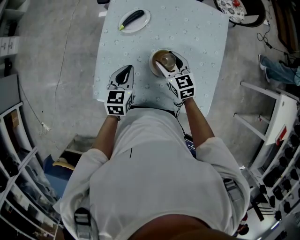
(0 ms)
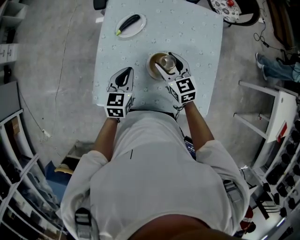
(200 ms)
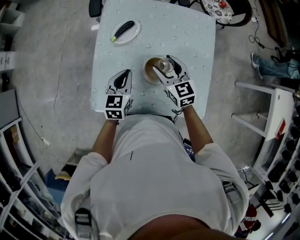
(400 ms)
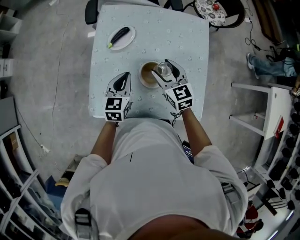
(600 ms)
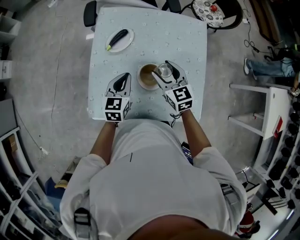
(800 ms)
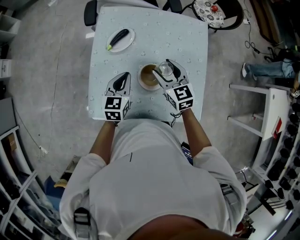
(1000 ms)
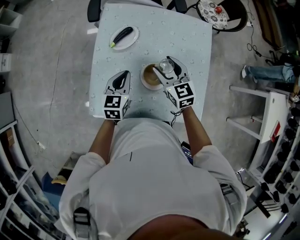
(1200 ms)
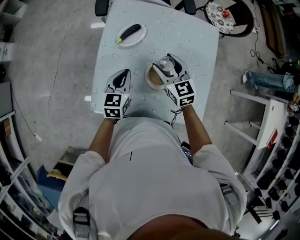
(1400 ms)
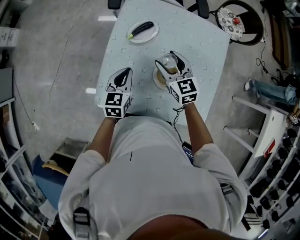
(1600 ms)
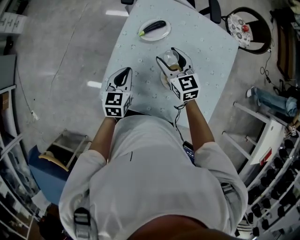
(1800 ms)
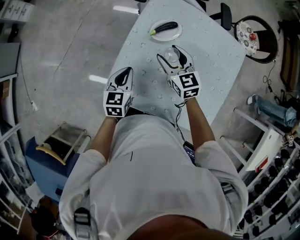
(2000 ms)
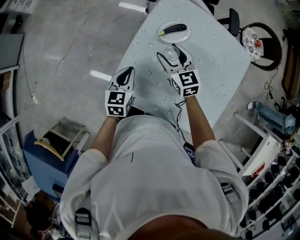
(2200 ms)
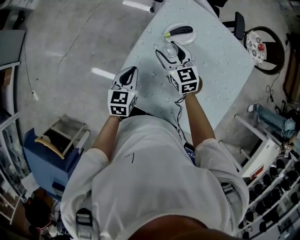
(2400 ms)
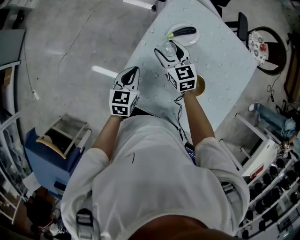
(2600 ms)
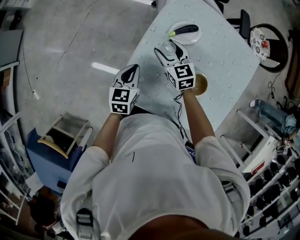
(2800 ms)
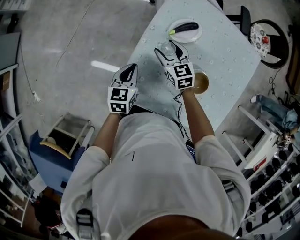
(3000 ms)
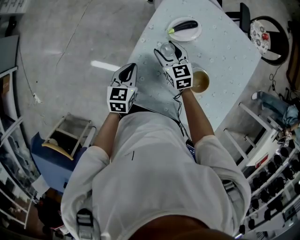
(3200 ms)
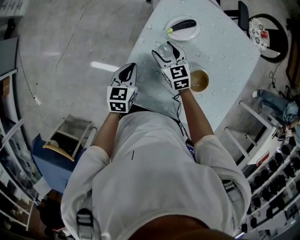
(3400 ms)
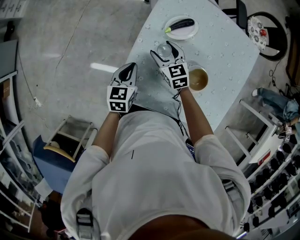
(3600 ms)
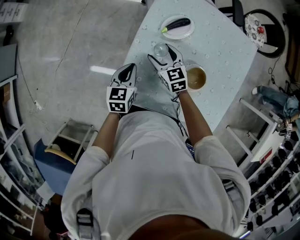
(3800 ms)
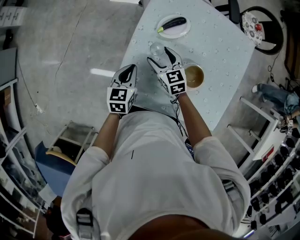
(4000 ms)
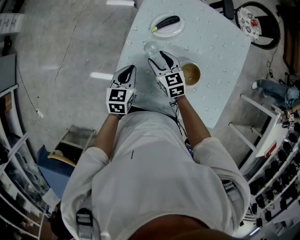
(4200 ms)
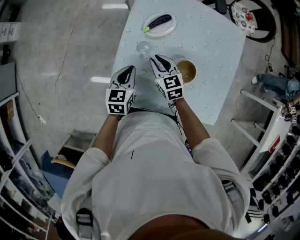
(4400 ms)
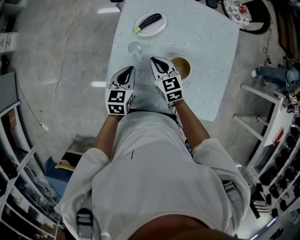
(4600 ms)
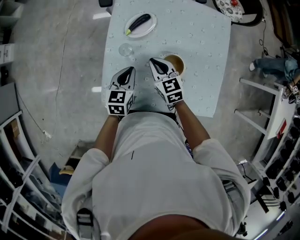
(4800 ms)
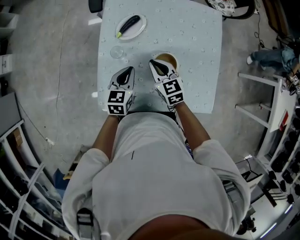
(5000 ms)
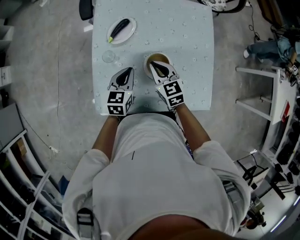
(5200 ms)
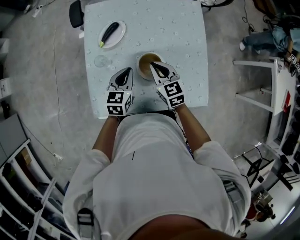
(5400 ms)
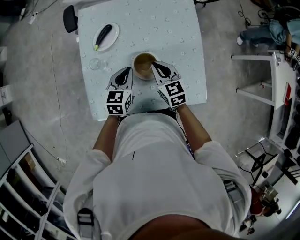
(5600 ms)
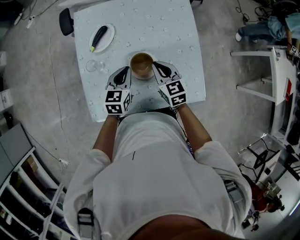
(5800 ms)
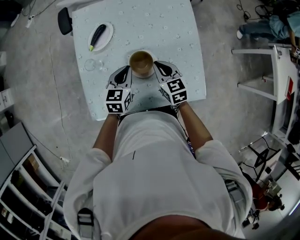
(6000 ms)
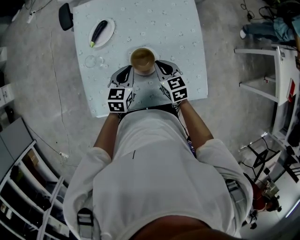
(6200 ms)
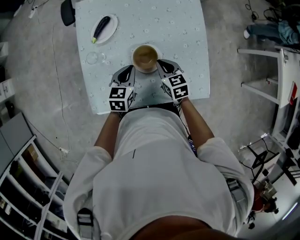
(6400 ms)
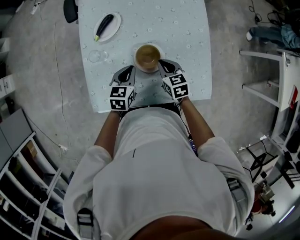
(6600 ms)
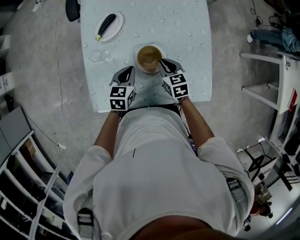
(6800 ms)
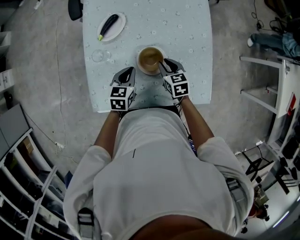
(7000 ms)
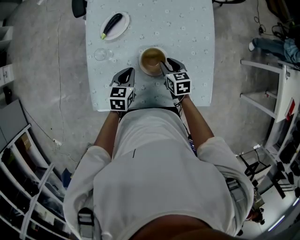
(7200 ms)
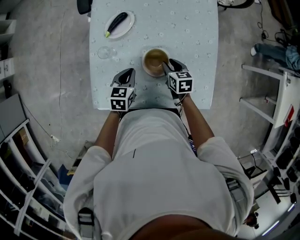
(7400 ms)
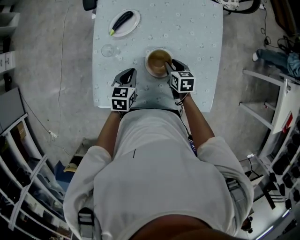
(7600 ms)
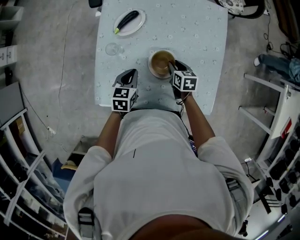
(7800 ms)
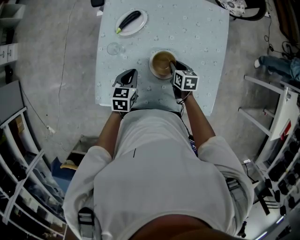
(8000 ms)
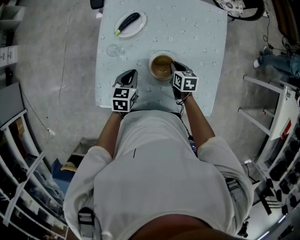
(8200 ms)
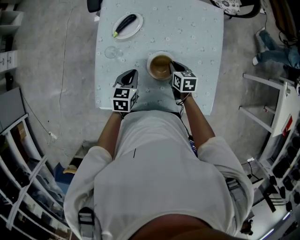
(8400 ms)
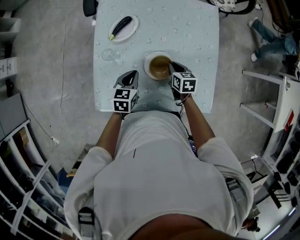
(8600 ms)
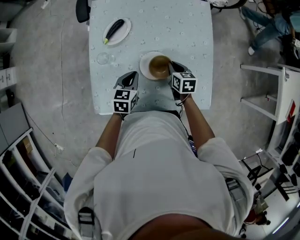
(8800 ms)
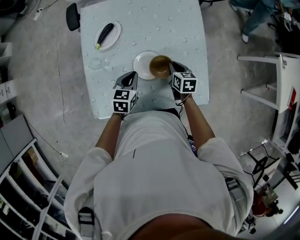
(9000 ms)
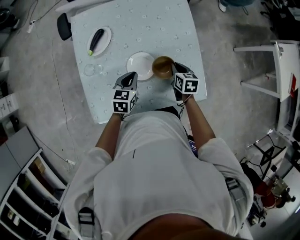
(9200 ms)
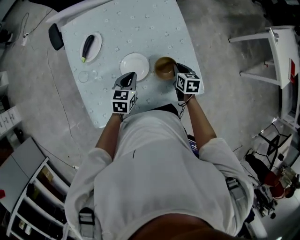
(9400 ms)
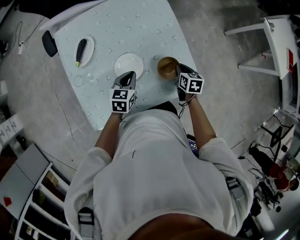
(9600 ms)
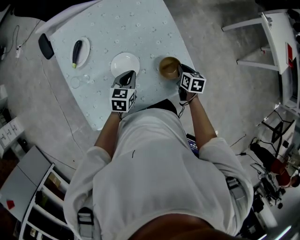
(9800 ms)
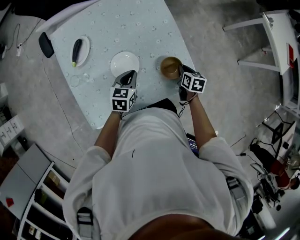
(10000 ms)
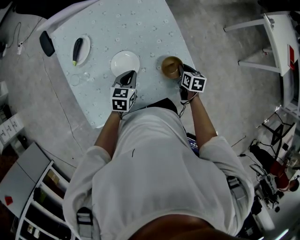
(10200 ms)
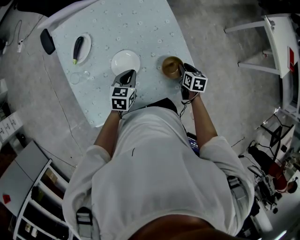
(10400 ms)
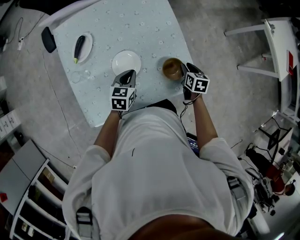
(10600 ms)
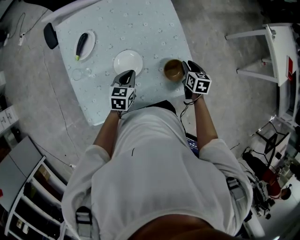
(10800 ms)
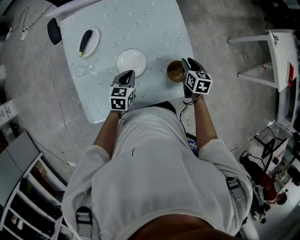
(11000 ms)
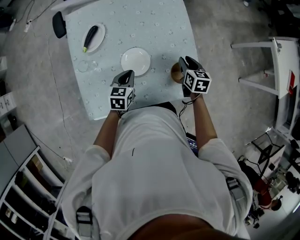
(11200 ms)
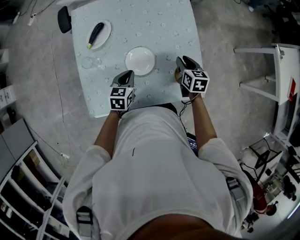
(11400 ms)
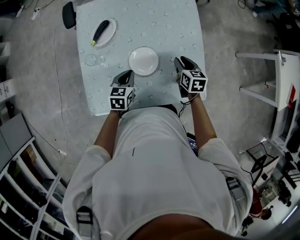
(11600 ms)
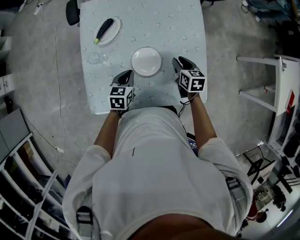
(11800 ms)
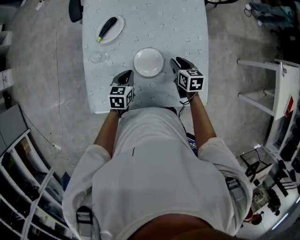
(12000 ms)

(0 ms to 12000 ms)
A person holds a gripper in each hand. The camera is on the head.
0 ms - 1600 ms: The right gripper shifts roughly 10 cm upward and forward. The left gripper changes place by about 5 cm.
1600 ms - 3000 ms: The left gripper moves to the left and downward, roughly 15 cm. Meanwhile the right gripper goes roughly 20 cm to the left, downward and forward.
3000 ms - 4400 ms: The right gripper is displaced backward and to the right by some 10 cm, and closes, while the left gripper moves to the right, some 5 cm.
4400 ms - 6000 ms: Both grippers travel together to the right, about 20 cm. The right gripper swivels about 20 degrees; the left gripper rotates roughly 20 degrees.
6000 ms - 7600 ms: The left gripper shifts roughly 10 cm to the left and downward. Meanwhile the right gripper heads downward, covering about 10 cm, and opens.
7600 ms - 9000 ms: The grippers both shift to the right by some 5 cm. The right gripper closes its fingers.
9000 ms - 10400 ms: The right gripper travels to the right by some 20 cm, and changes its angle by approximately 20 degrees. The left gripper travels to the right by about 10 cm.
10400 ms - 12000 ms: The left gripper goes about 10 cm to the left, and swivels about 20 degrees. The right gripper is displaced to the left by approximately 20 cm, and turns by about 30 degrees.

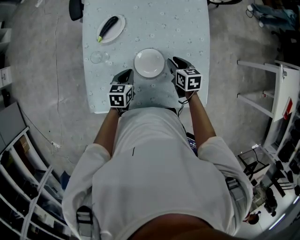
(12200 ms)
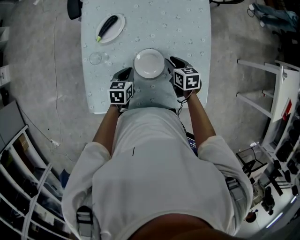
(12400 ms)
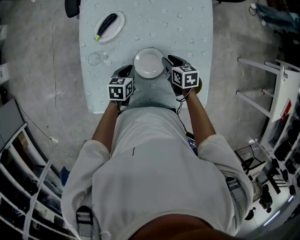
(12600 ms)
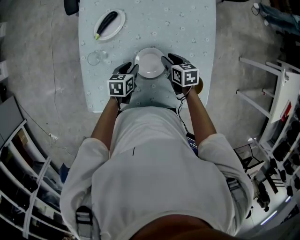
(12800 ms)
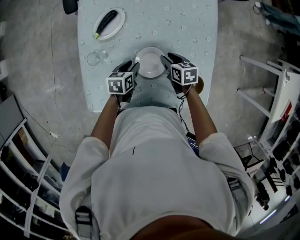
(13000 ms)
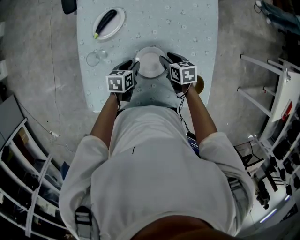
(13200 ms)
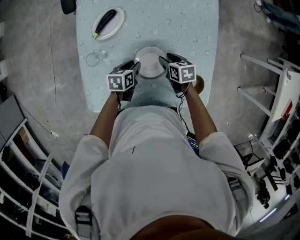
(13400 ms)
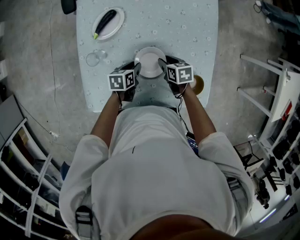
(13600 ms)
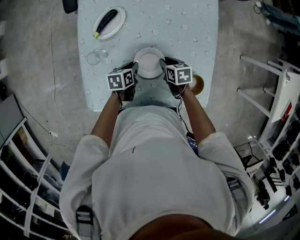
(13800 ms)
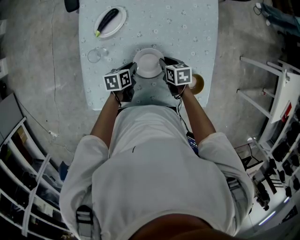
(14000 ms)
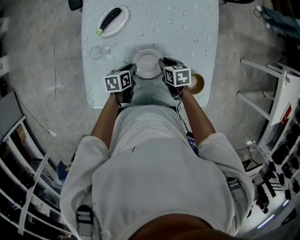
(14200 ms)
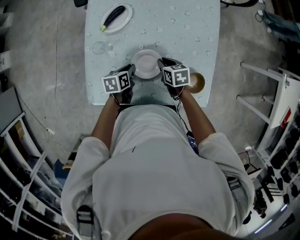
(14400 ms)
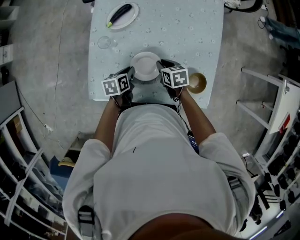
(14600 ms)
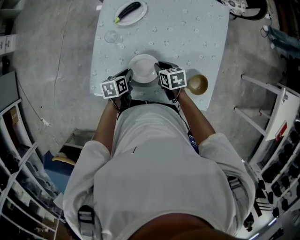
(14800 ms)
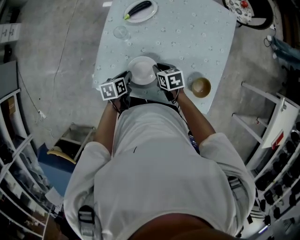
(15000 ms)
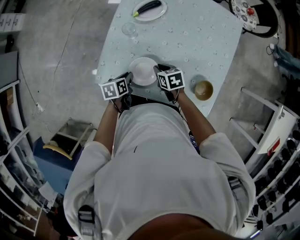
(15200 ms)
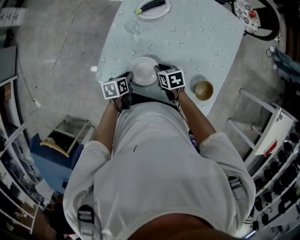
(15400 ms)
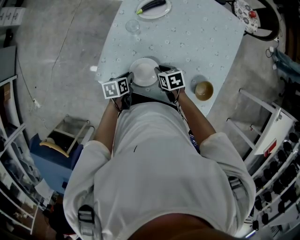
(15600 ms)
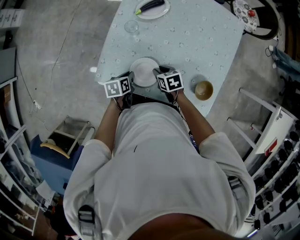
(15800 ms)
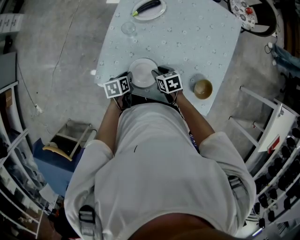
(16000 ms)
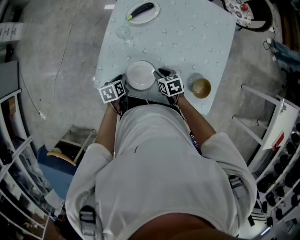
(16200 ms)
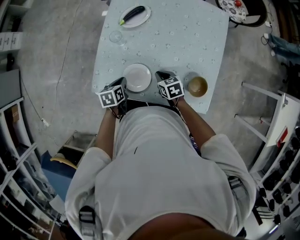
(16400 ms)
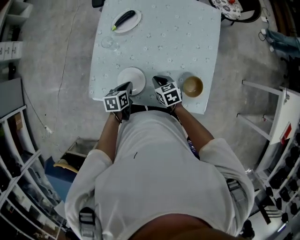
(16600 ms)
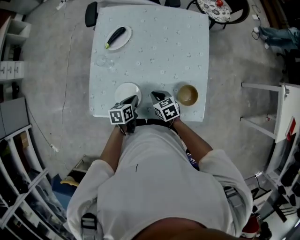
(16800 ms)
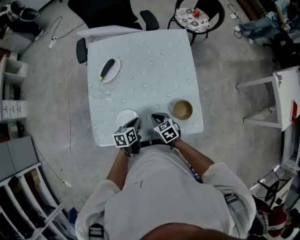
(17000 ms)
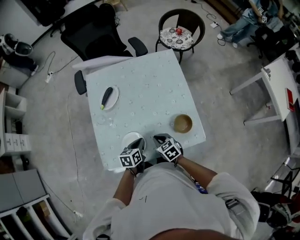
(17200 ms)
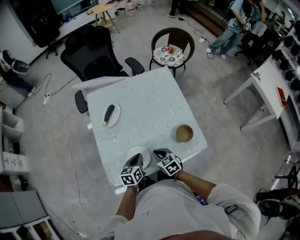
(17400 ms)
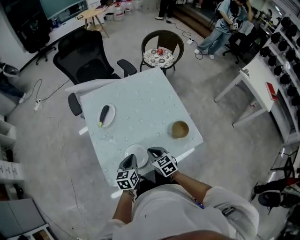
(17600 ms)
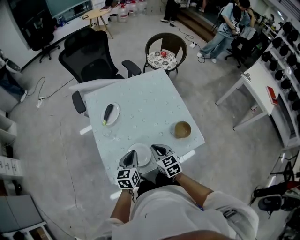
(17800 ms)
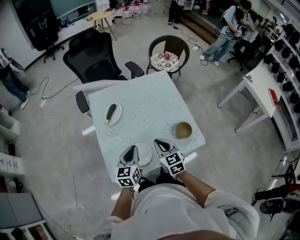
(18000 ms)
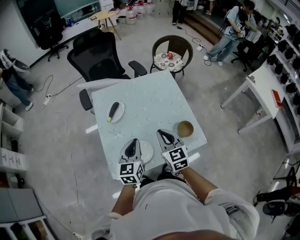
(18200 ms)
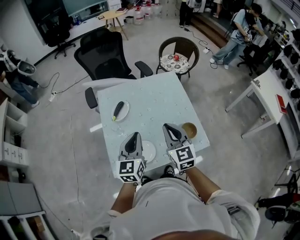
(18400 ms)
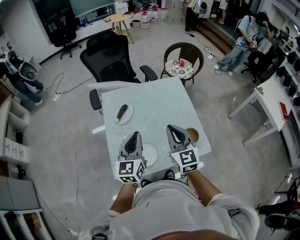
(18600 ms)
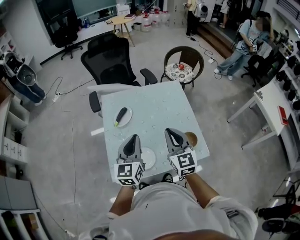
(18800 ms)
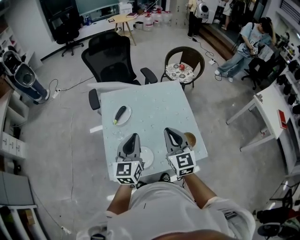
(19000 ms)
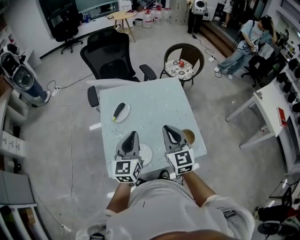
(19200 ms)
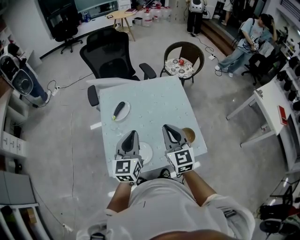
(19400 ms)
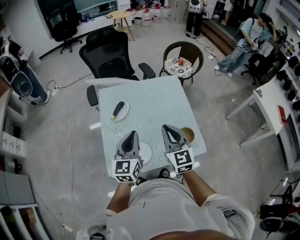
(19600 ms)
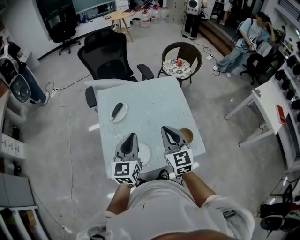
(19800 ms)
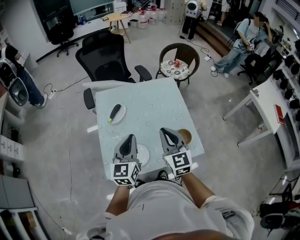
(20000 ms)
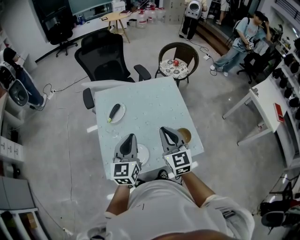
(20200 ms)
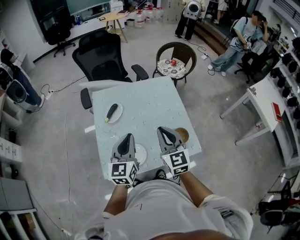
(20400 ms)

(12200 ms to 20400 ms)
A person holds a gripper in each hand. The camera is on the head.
12200 ms - 13800 ms: The two grippers go about 10 cm downward. The left gripper rotates about 20 degrees.
13800 ms - 15400 ms: The right gripper travels to the left and backward by approximately 15 cm, and turns by approximately 30 degrees. Meanwhile the left gripper shifts approximately 20 cm backward and to the left, and rotates approximately 20 degrees.
15400 ms - 17200 ms: The left gripper moves roughly 15 cm, and turns by roughly 40 degrees. Meanwhile the right gripper changes place by some 15 cm, and changes its angle by approximately 20 degrees.
17200 ms - 18800 ms: Both grippers travel together upward, roughly 30 cm. The left gripper tilts its fingers roughly 40 degrees upward. Meanwhile the right gripper angles its fingers upward, by some 40 degrees.
18800 ms - 20400 ms: The grippers stay close to where they were, moving slightly.

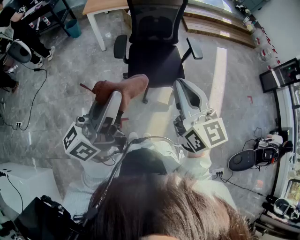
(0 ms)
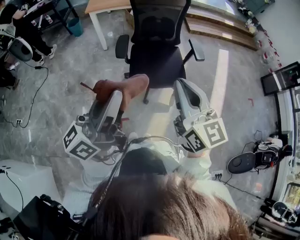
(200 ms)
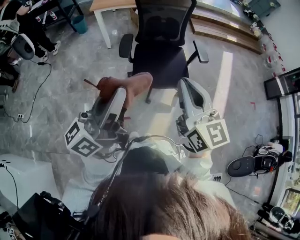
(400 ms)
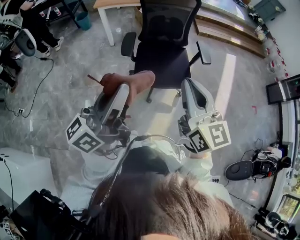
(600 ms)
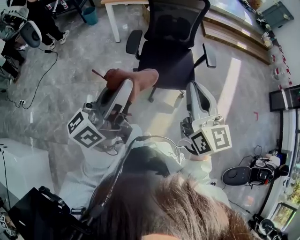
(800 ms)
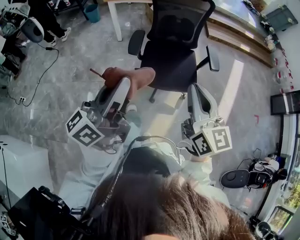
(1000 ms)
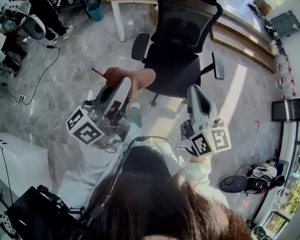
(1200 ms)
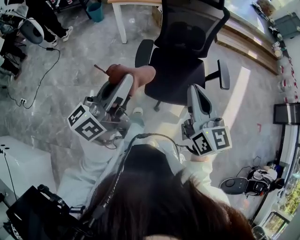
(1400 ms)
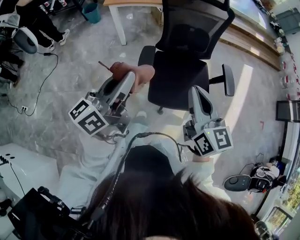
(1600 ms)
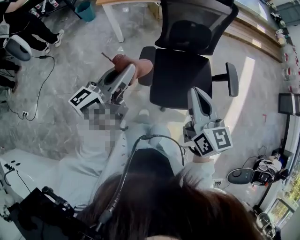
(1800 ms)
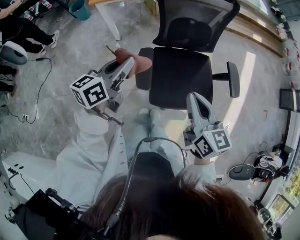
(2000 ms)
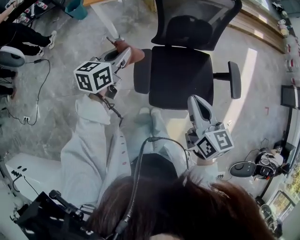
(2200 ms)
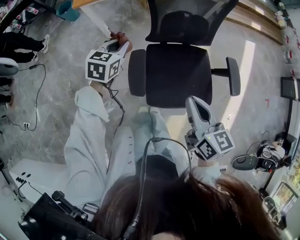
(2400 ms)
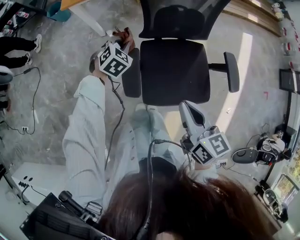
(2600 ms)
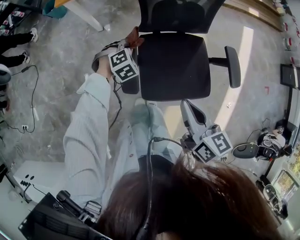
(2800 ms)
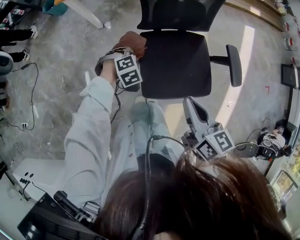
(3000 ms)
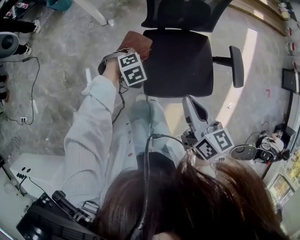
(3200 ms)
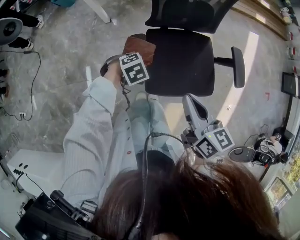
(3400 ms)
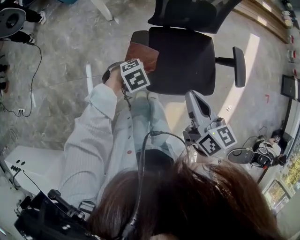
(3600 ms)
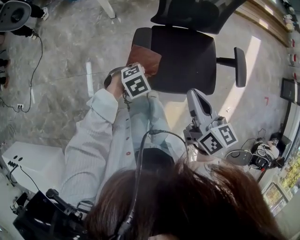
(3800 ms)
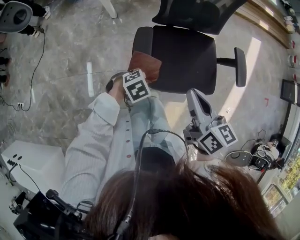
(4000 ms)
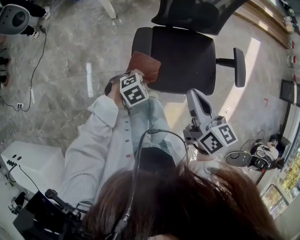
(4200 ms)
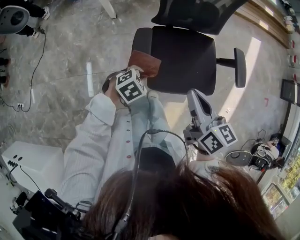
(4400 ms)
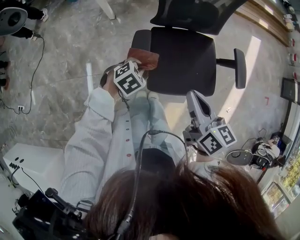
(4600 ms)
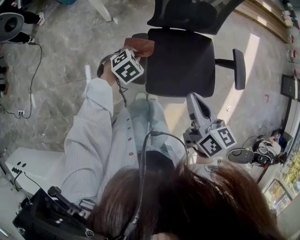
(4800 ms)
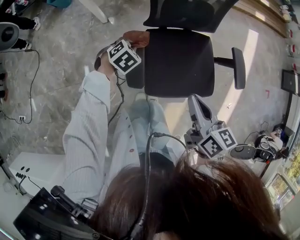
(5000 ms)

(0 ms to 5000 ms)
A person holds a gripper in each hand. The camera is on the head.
0 ms - 1600 ms: Both grippers move forward, some 30 cm.
1600 ms - 3400 ms: The right gripper travels downward by roughly 15 cm, and changes its angle by roughly 30 degrees, while the left gripper shifts approximately 40 cm downward, and points its fingers roughly 80 degrees further downward.
3400 ms - 5000 ms: The left gripper moves some 10 cm.
